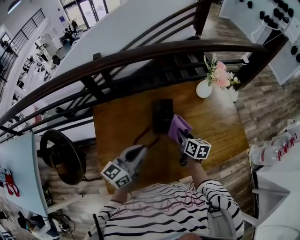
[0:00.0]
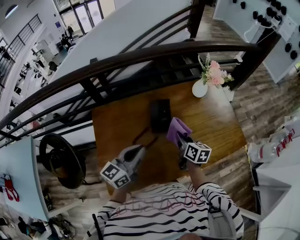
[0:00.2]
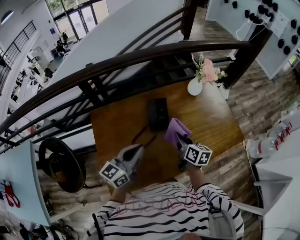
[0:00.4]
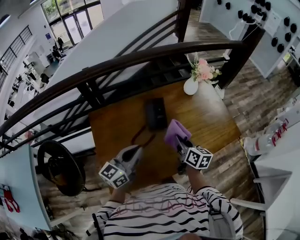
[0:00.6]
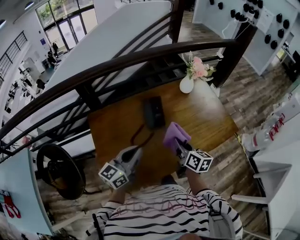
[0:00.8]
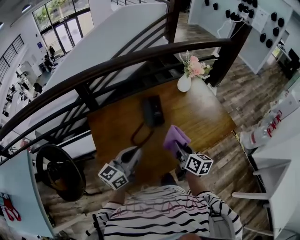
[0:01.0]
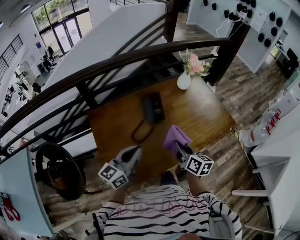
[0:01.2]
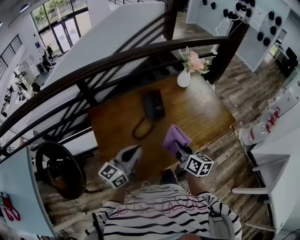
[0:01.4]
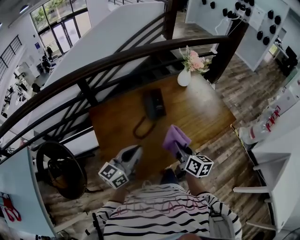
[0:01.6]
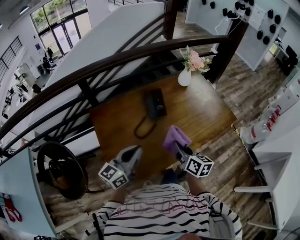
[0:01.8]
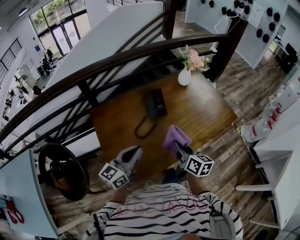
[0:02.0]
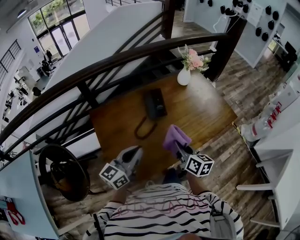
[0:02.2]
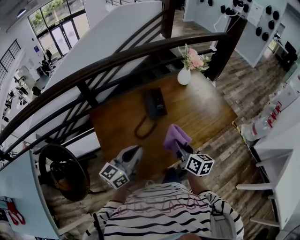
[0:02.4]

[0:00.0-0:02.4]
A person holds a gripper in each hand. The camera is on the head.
0:00.0 to 0:01.2: The left gripper is displaced backward by approximately 15 cm. The right gripper moves backward, roughly 25 cm.
0:01.2 to 0:02.4: The grippers stay close to where they were, moving slightly.

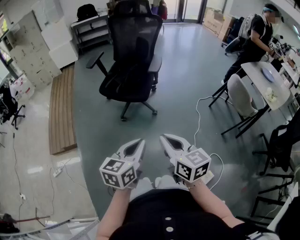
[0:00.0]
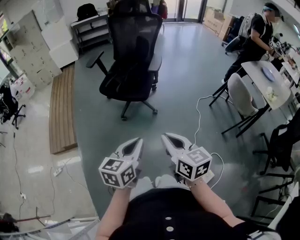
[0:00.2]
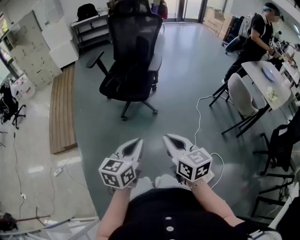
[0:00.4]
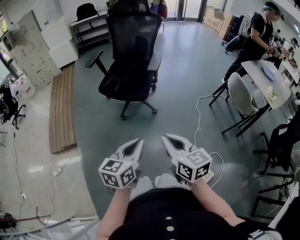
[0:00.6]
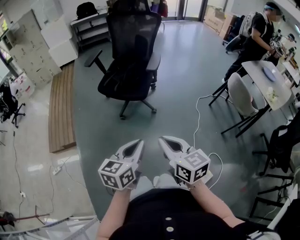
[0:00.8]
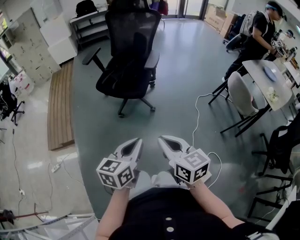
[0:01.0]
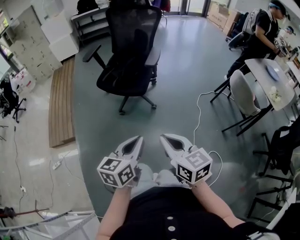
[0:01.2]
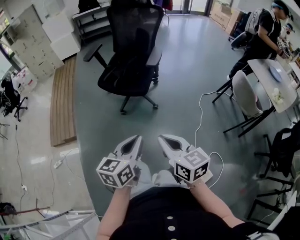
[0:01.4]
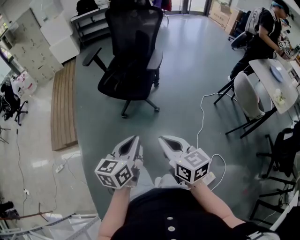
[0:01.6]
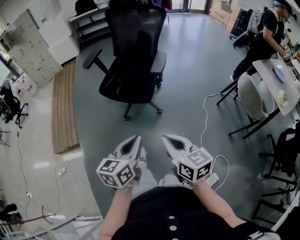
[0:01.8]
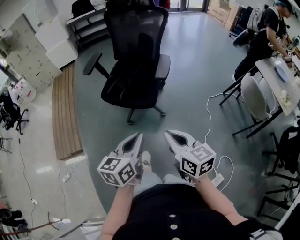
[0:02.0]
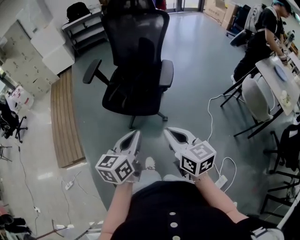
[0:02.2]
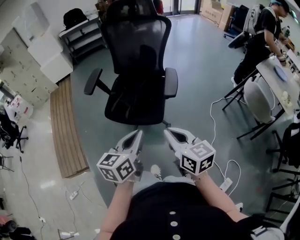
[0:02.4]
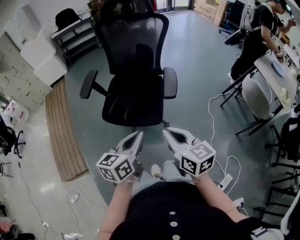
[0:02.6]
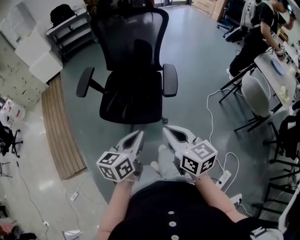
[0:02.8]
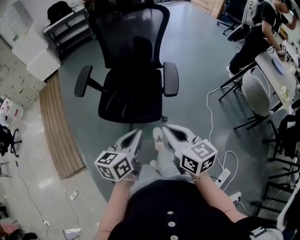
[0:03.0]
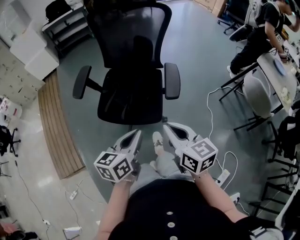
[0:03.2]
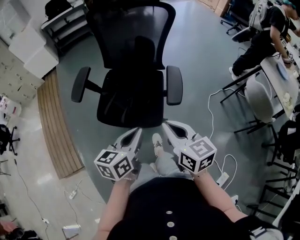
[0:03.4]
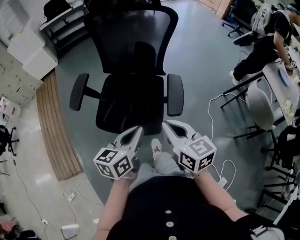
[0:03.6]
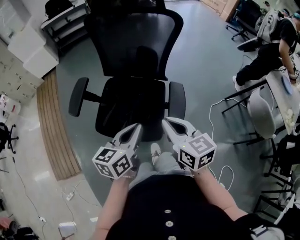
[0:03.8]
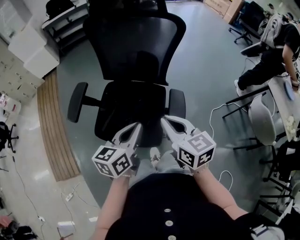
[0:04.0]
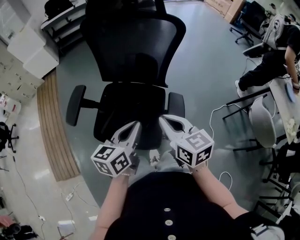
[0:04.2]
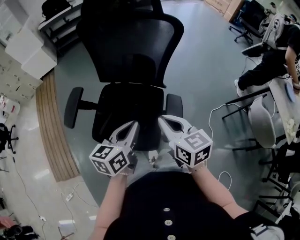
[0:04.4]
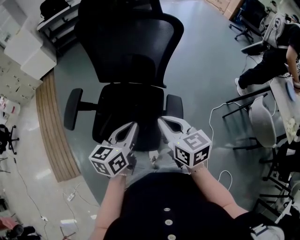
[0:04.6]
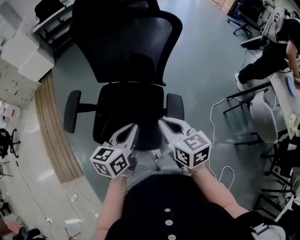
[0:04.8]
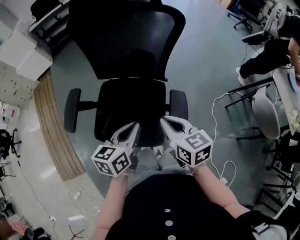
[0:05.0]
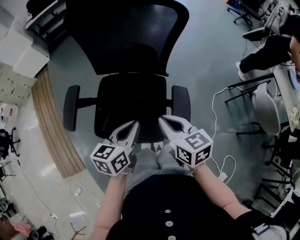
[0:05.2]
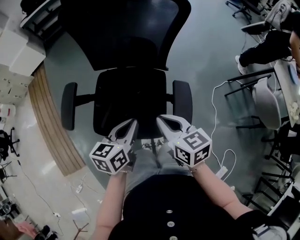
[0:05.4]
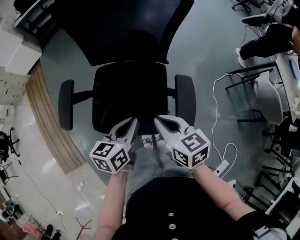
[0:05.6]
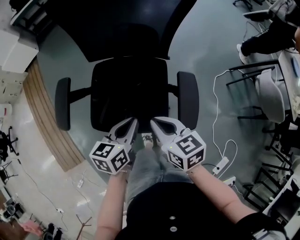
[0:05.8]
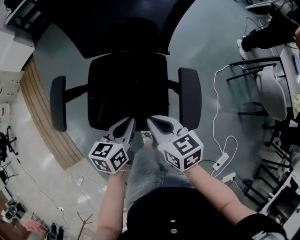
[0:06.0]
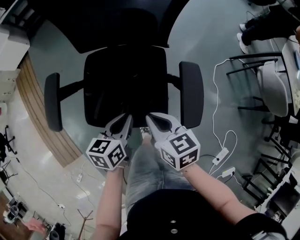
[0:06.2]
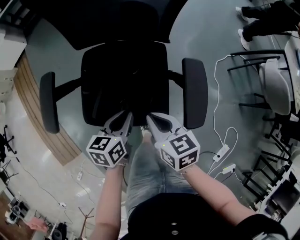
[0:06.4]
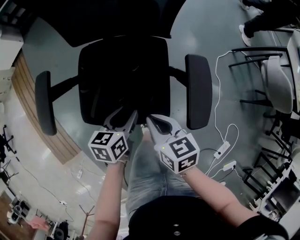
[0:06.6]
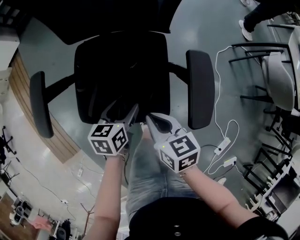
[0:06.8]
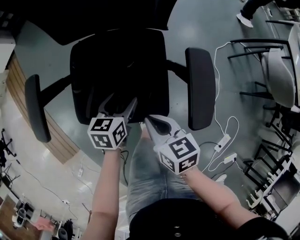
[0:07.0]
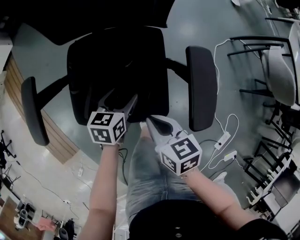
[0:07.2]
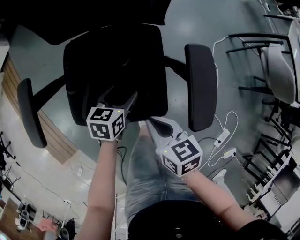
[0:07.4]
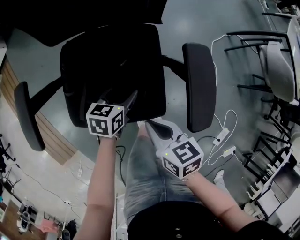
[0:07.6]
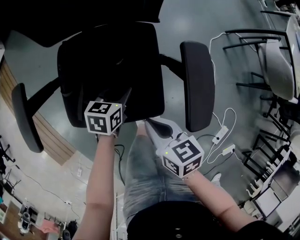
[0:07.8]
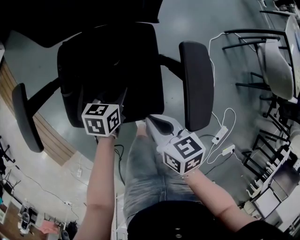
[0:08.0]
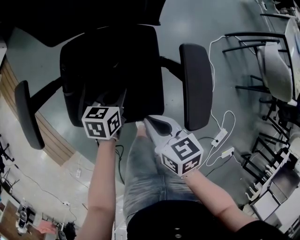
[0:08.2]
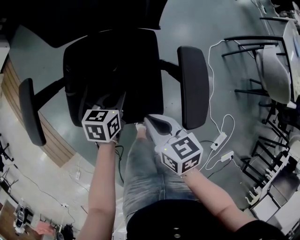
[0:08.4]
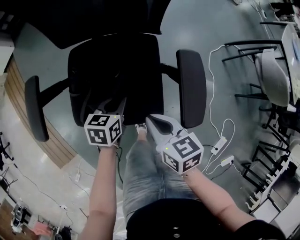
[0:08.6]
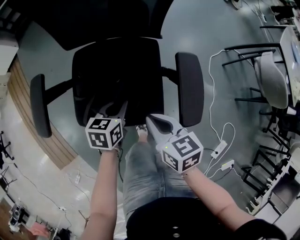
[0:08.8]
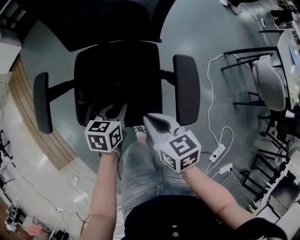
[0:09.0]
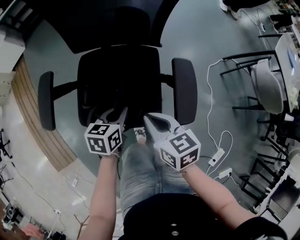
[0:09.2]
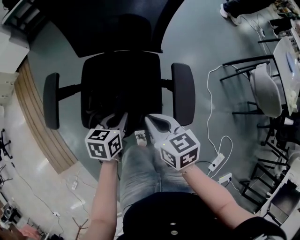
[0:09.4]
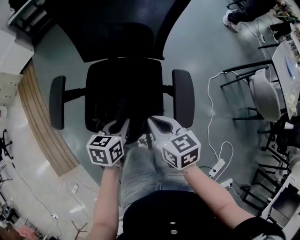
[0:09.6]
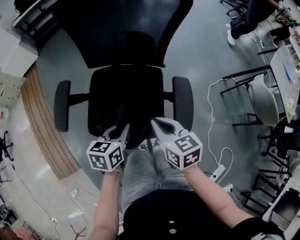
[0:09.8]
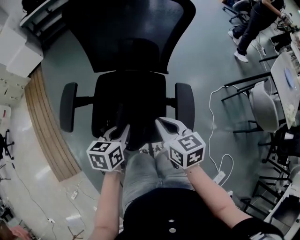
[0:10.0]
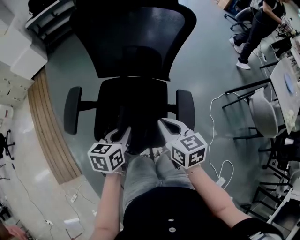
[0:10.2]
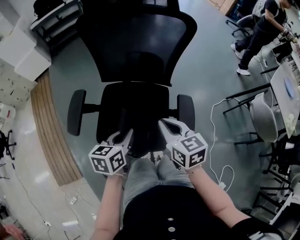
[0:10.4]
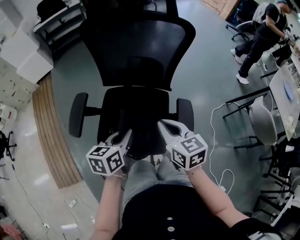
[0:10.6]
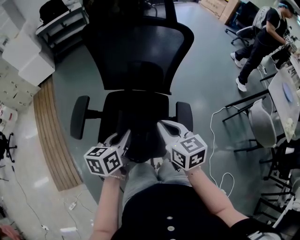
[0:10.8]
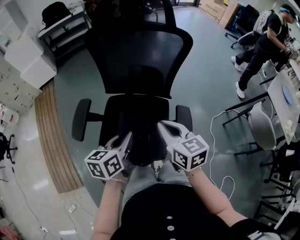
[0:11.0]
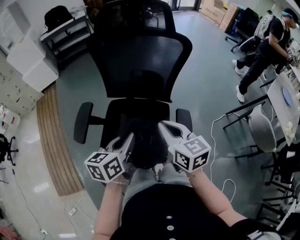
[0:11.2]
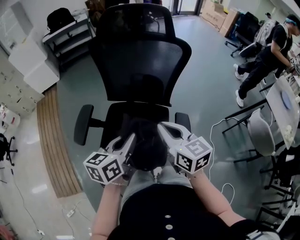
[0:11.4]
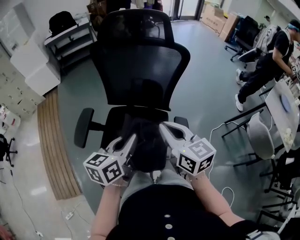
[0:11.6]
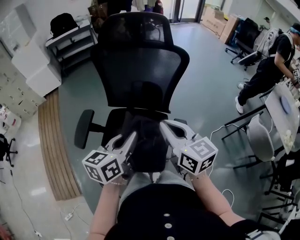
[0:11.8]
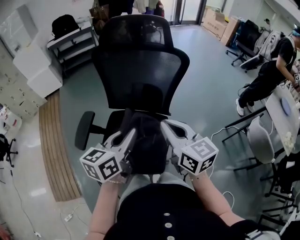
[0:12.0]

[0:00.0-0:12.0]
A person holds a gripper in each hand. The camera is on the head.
0:00.0 to 0:01.6: Both grippers travel together forward, roughly 5 cm.
0:01.6 to 0:03.0: Both grippers travel together forward and to the left, roughly 35 cm.
0:03.0 to 0:04.4: The two grippers go roughly 30 cm forward.
0:04.4 to 0:06.0: Both grippers move downward and to the left, roughly 15 cm.
0:06.0 to 0:07.6: Both grippers travel together downward, some 15 cm. The left gripper changes its angle by roughly 20 degrees, and opens up.
0:07.6 to 0:09.0: The grippers both shift upward by about 10 cm. The left gripper closes.
0:09.0 to 0:10.4: Both grippers move upward, about 15 cm.
0:10.4 to 0:12.0: Both grippers move upward, approximately 15 cm. The left gripper rotates roughly 20 degrees, while the right gripper turns by roughly 20 degrees.

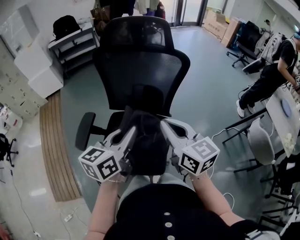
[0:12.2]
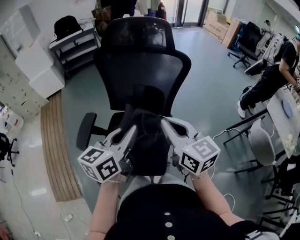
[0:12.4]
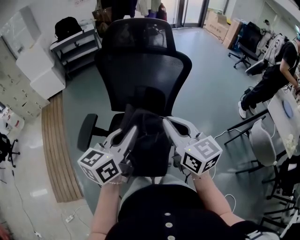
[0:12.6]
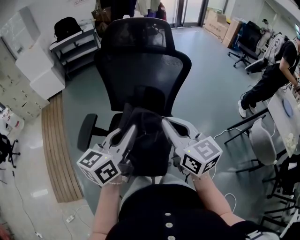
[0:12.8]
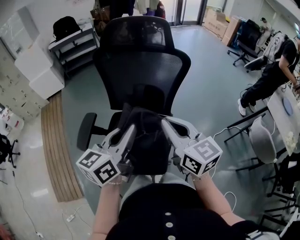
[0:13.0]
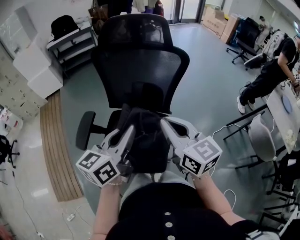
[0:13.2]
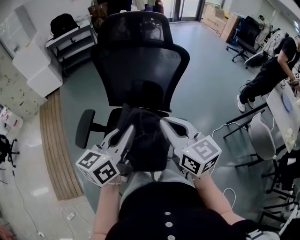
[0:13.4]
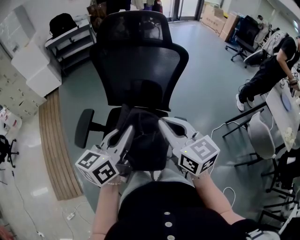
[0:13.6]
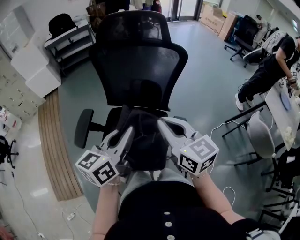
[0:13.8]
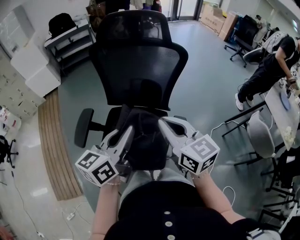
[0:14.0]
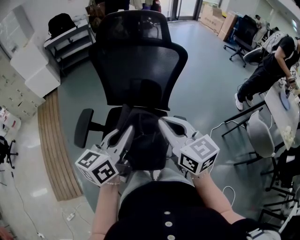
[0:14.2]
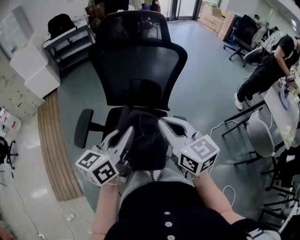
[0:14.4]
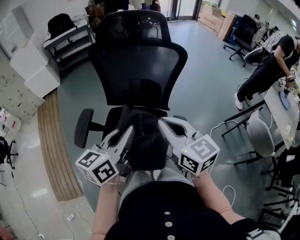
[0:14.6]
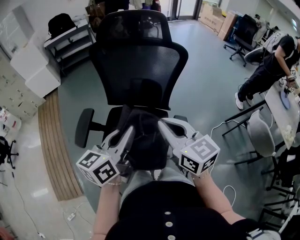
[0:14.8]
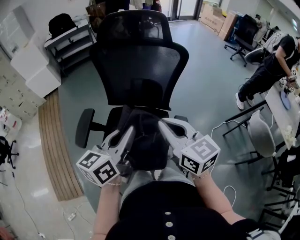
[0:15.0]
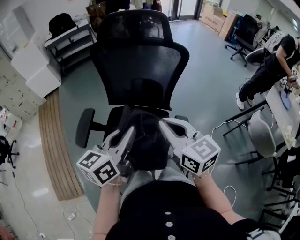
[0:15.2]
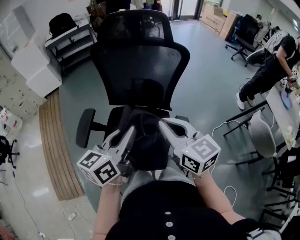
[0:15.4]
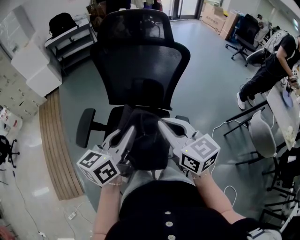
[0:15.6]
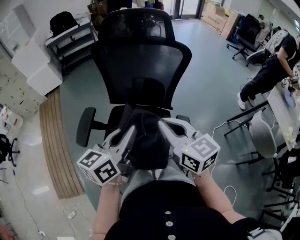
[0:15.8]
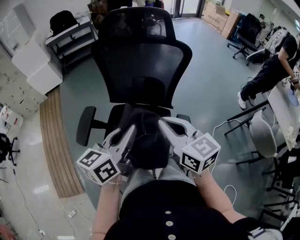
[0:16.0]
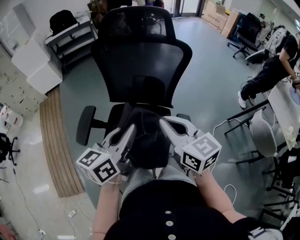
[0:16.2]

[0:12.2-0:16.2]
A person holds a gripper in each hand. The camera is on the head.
0:12.2 to 0:13.6: The grippers stay close to where they were, moving slightly.
0:13.6 to 0:16.2: Neither gripper changes place.

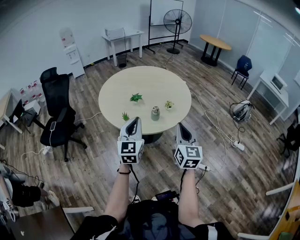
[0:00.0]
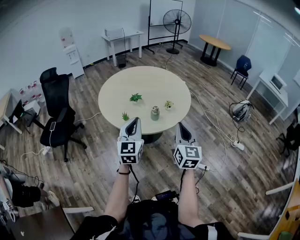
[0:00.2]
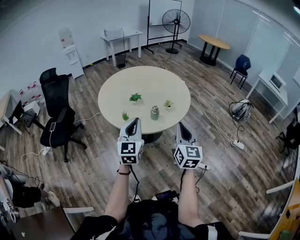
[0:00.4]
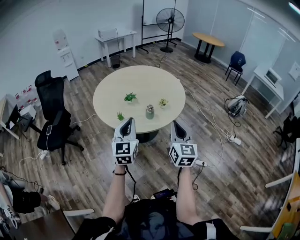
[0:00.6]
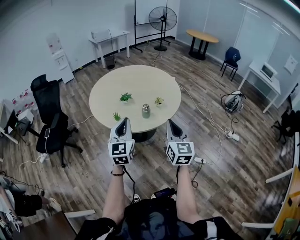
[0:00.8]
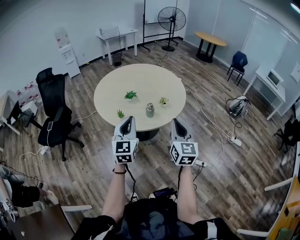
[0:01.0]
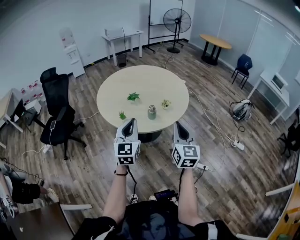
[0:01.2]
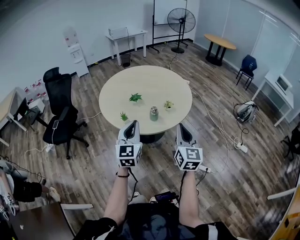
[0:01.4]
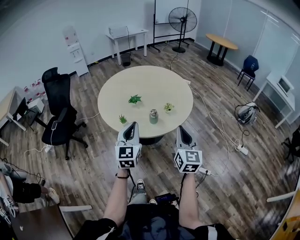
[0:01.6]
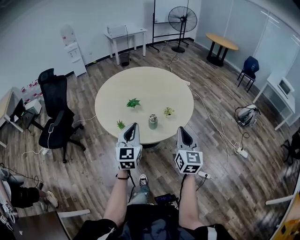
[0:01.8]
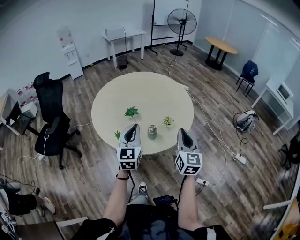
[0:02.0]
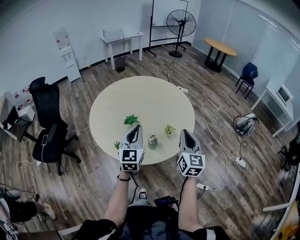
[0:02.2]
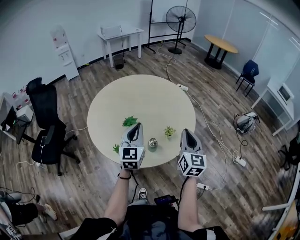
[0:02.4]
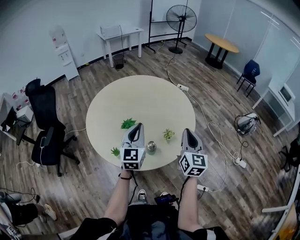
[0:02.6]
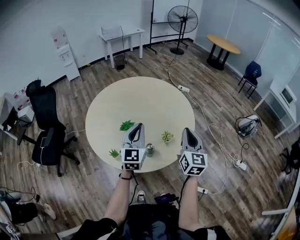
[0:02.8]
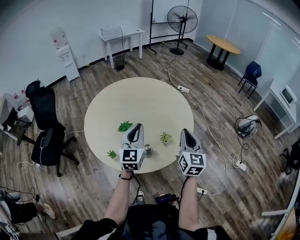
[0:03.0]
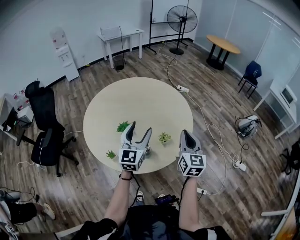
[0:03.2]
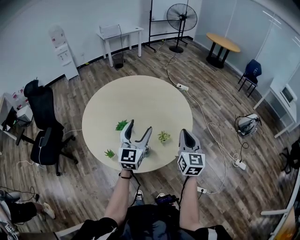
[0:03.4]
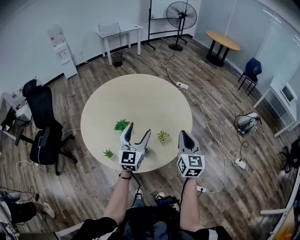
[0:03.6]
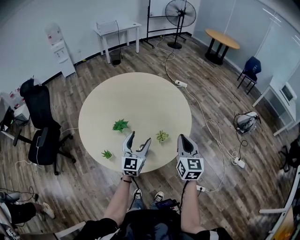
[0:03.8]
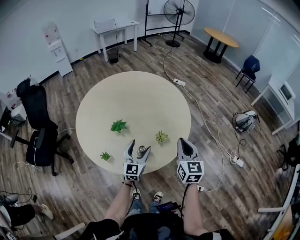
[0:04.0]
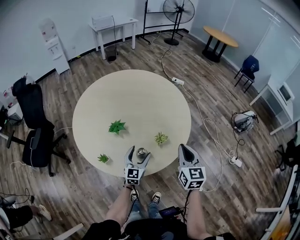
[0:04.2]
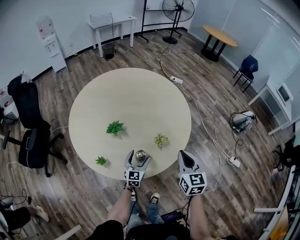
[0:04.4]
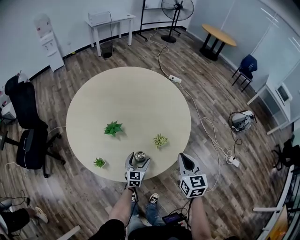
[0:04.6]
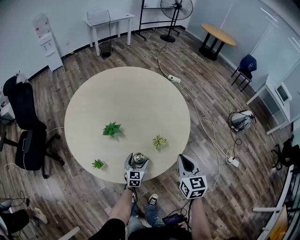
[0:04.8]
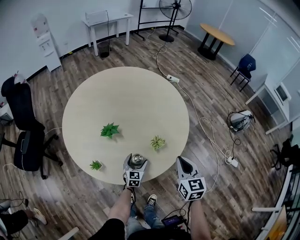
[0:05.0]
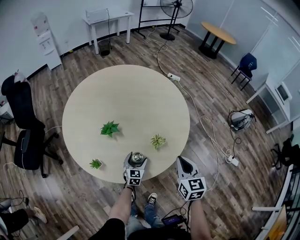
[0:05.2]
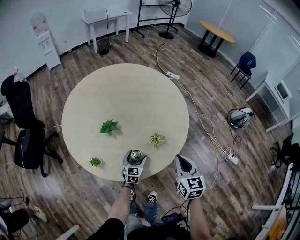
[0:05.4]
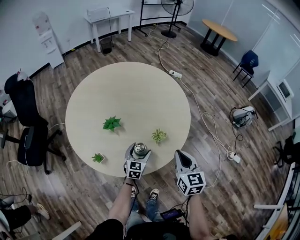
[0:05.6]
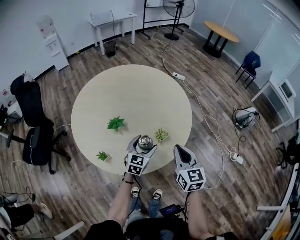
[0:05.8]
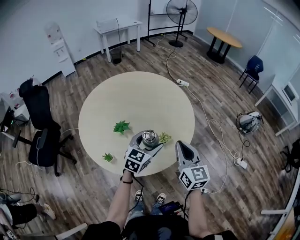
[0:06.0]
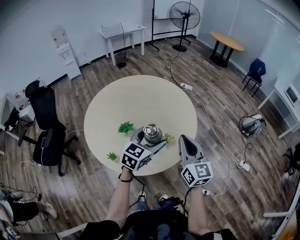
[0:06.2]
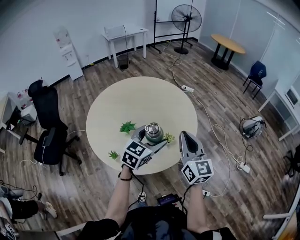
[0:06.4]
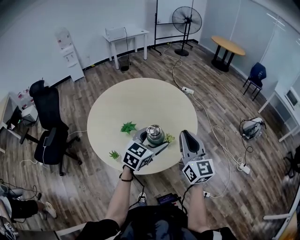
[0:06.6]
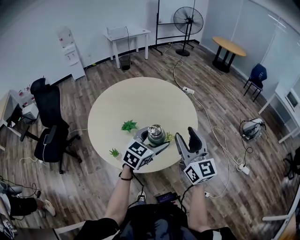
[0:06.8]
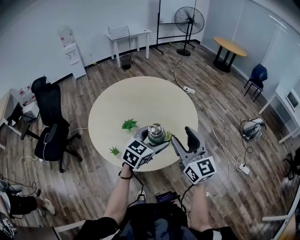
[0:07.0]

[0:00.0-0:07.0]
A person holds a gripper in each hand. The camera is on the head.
0:00.0 to 0:01.4: There are only small adjustments of the grippers.
0:01.4 to 0:02.8: The two grippers go approximately 30 cm forward.
0:02.8 to 0:04.2: The right gripper heads downward, covering about 10 cm, while the left gripper is displaced downward by approximately 25 cm, and opens up.
0:04.2 to 0:05.6: The left gripper goes about 5 cm downward.
0:05.6 to 0:07.0: The left gripper is displaced upward by approximately 30 cm, and swivels roughly 20 degrees, while the right gripper moves upward, approximately 20 cm, rotates about 30 degrees, and opens up.
